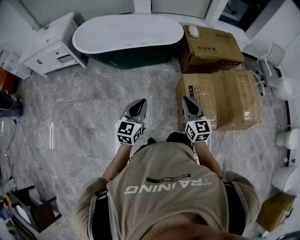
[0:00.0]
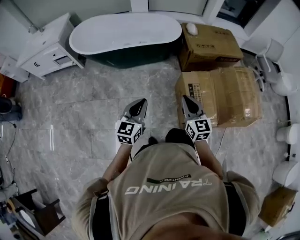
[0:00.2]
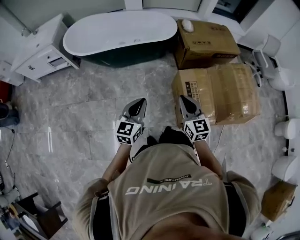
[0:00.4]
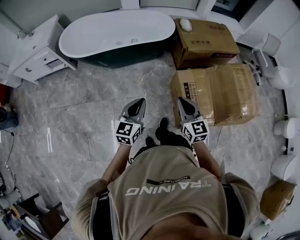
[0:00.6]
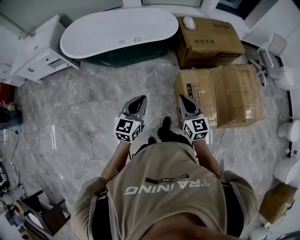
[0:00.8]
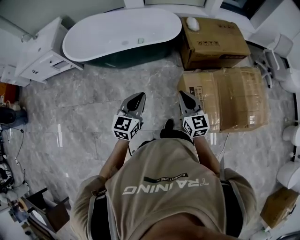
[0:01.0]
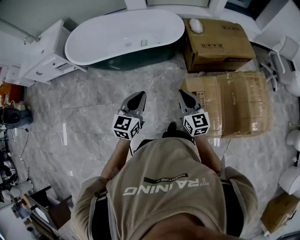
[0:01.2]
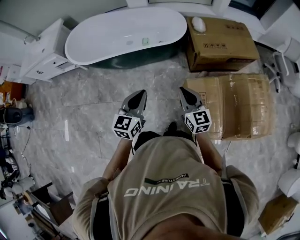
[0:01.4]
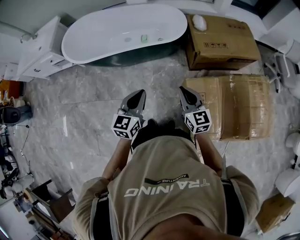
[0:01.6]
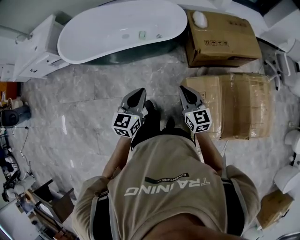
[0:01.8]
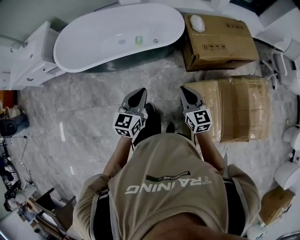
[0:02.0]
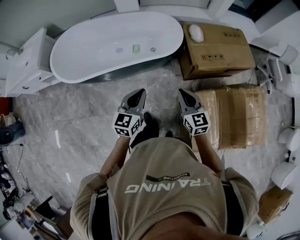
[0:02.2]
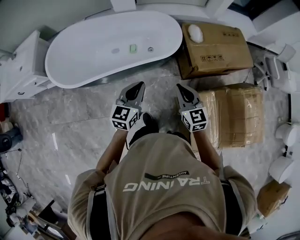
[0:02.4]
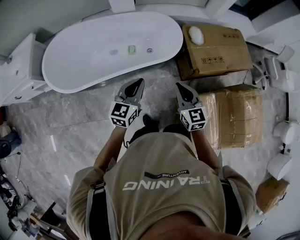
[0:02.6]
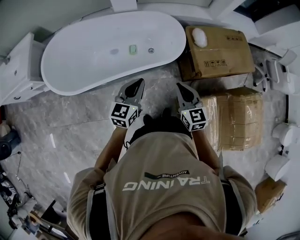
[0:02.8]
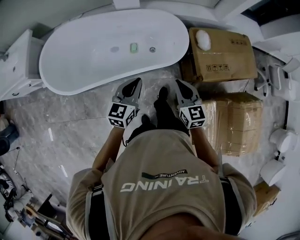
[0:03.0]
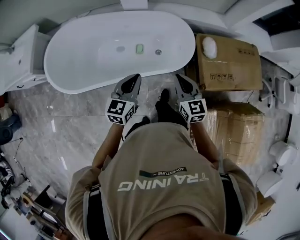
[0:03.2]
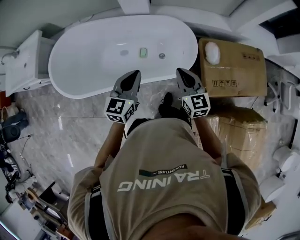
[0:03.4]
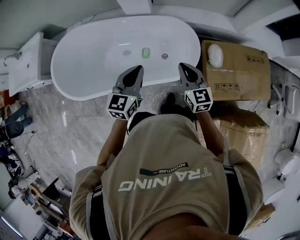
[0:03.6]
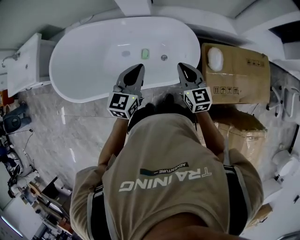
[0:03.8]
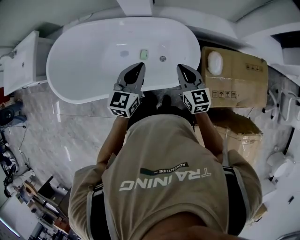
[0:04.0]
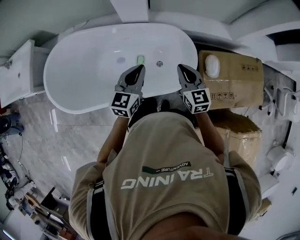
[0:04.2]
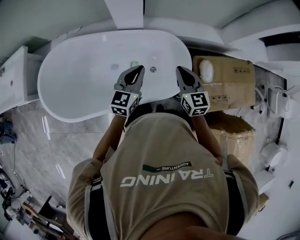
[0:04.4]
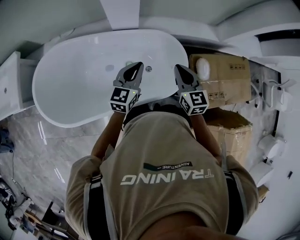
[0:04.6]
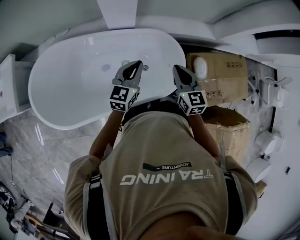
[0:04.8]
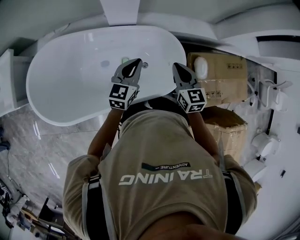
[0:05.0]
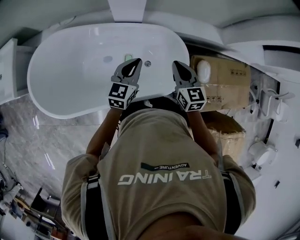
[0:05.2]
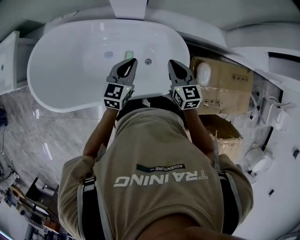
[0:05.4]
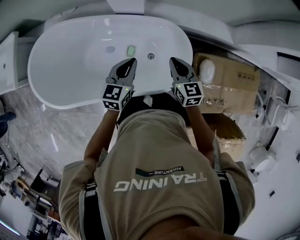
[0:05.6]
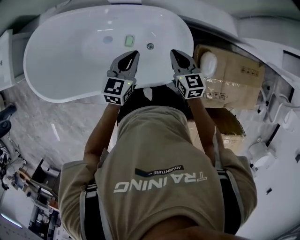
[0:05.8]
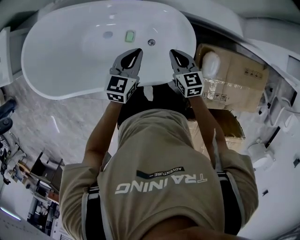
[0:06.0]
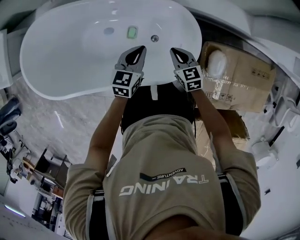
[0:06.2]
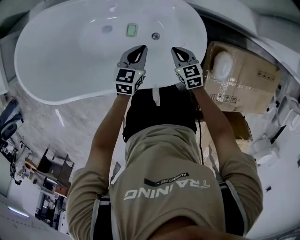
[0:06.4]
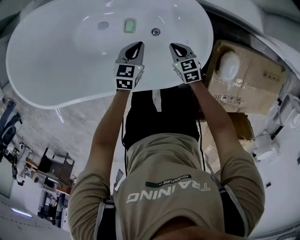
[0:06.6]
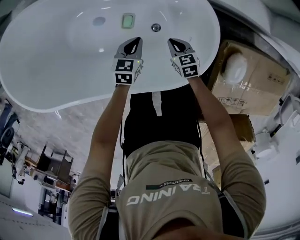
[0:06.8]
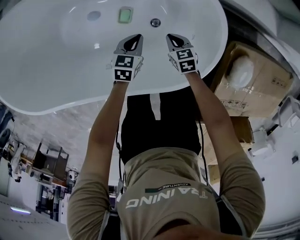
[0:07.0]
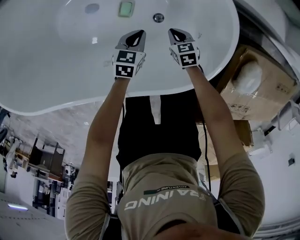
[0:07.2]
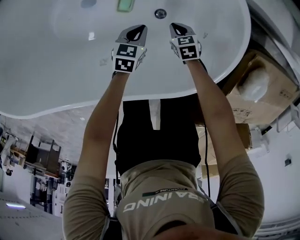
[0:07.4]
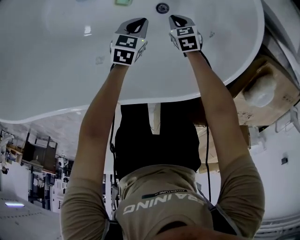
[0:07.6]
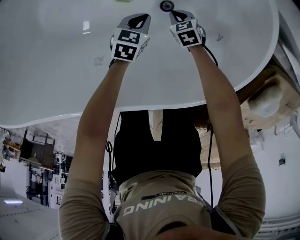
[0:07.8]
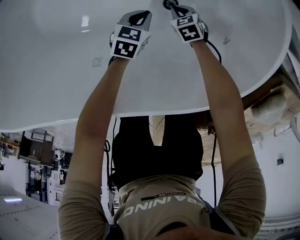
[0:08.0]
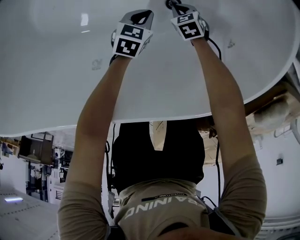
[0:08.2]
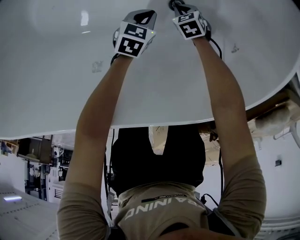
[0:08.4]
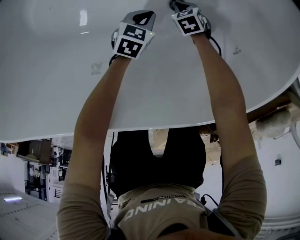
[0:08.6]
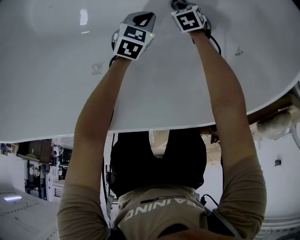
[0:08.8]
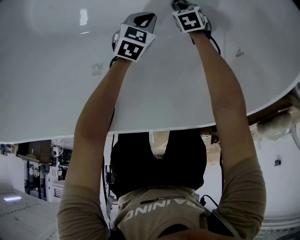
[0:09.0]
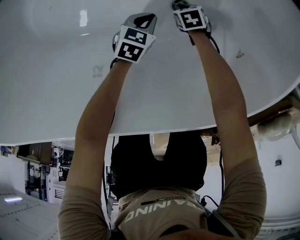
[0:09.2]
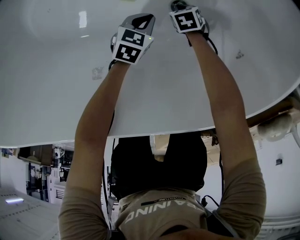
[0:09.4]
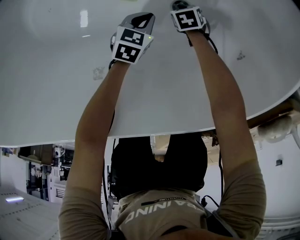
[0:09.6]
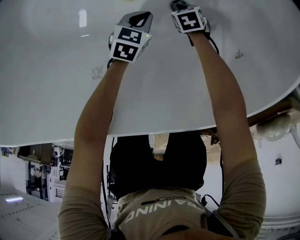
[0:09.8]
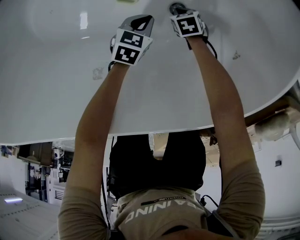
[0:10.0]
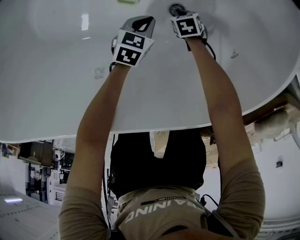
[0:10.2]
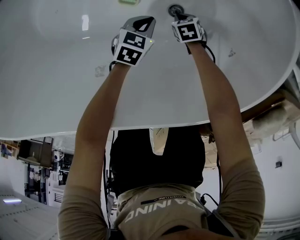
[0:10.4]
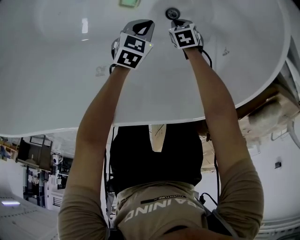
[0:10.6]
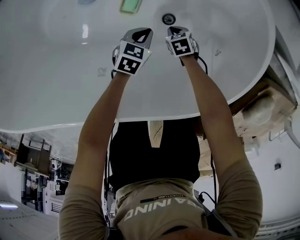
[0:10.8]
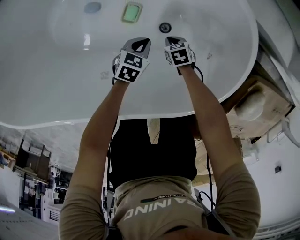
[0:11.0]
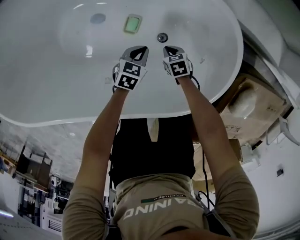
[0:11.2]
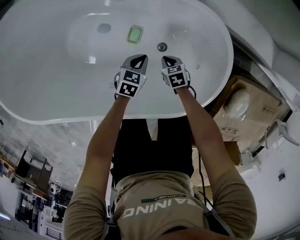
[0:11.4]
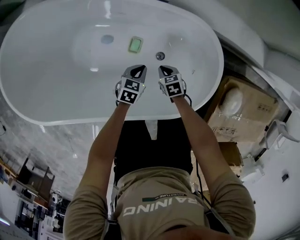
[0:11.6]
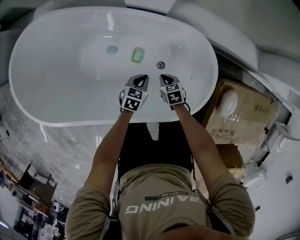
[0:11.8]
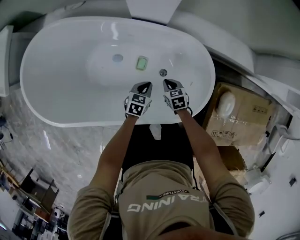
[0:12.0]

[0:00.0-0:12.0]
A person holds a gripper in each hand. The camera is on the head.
0:00.0 to 0:01.6: Both grippers move forward, approximately 25 cm.
0:01.6 to 0:03.0: Both grippers travel together forward, roughly 35 cm.
0:03.0 to 0:04.4: Both grippers travel together forward, approximately 30 cm.
0:04.4 to 0:06.0: The right gripper is displaced downward and forward by about 20 cm, and rotates approximately 20 degrees, while the left gripper heads downward, forward and to the right, covering some 15 cm.
0:06.0 to 0:07.6: The two grippers go about 50 cm downward. The right gripper points its fingers about 30 degrees further downward. The left gripper swivels some 30 degrees.
0:07.6 to 0:09.0: The two grippers go roughly 15 cm downward.
0:09.0 to 0:10.4: The grippers make only small movements.
0:10.4 to 0:12.0: Both grippers travel together upward, roughly 40 cm. The right gripper swivels approximately 30 degrees.

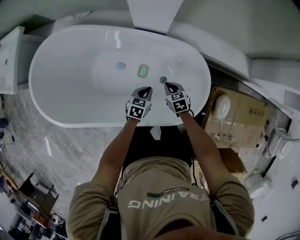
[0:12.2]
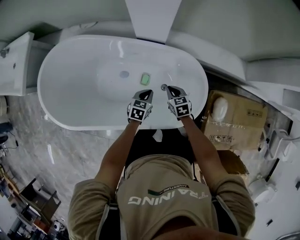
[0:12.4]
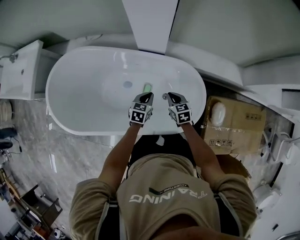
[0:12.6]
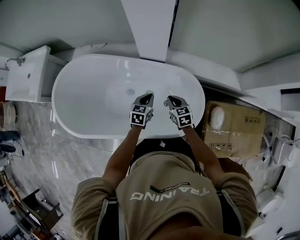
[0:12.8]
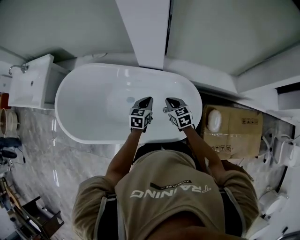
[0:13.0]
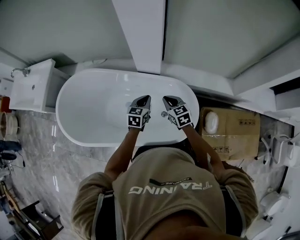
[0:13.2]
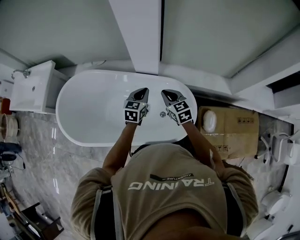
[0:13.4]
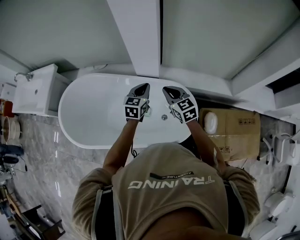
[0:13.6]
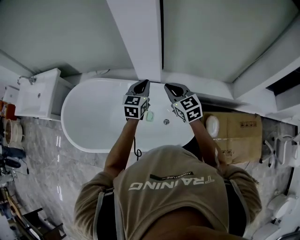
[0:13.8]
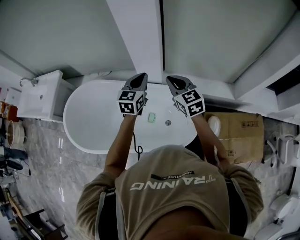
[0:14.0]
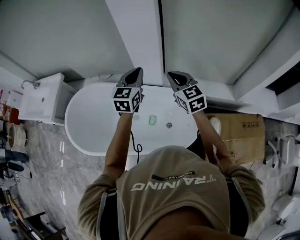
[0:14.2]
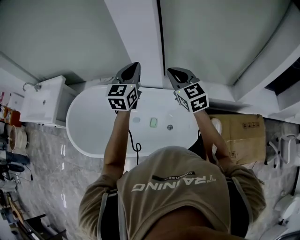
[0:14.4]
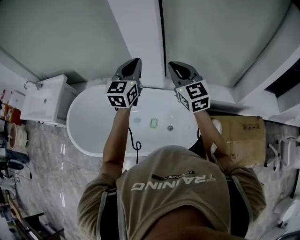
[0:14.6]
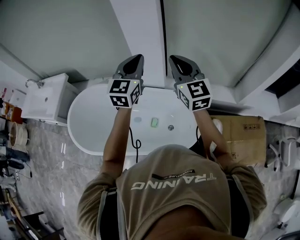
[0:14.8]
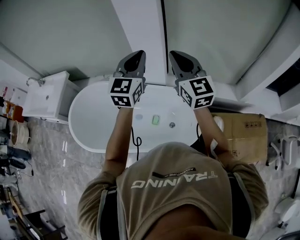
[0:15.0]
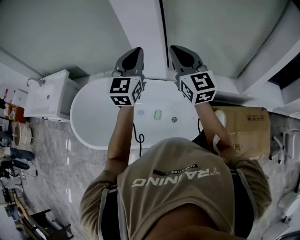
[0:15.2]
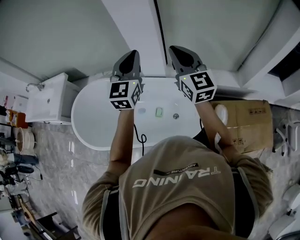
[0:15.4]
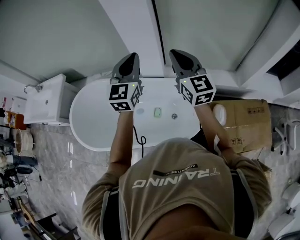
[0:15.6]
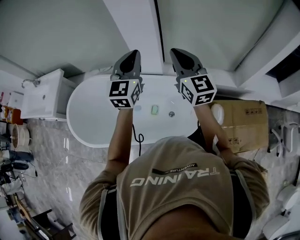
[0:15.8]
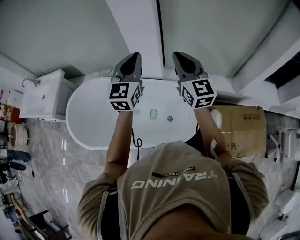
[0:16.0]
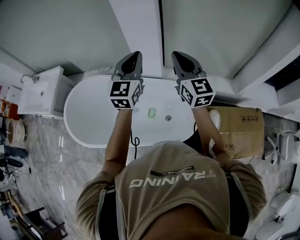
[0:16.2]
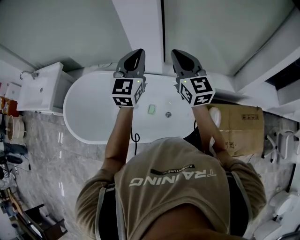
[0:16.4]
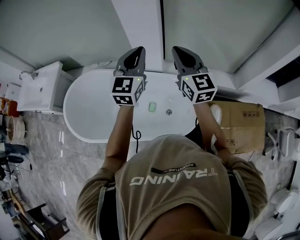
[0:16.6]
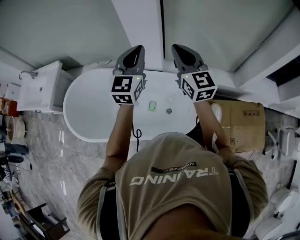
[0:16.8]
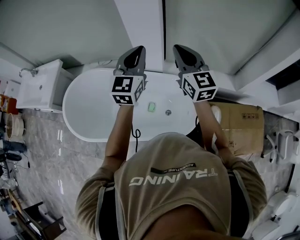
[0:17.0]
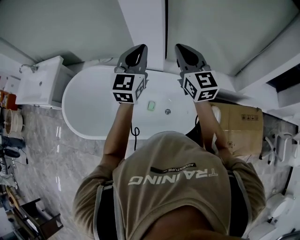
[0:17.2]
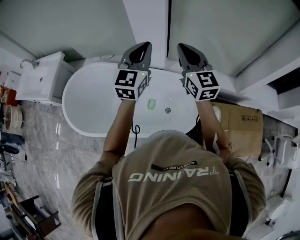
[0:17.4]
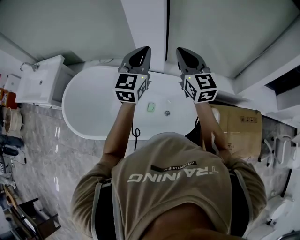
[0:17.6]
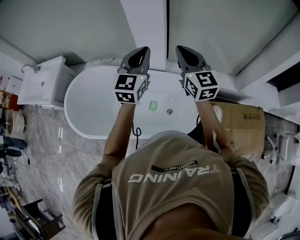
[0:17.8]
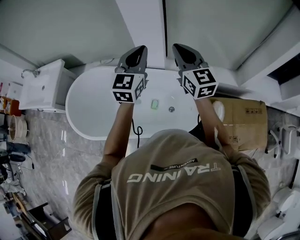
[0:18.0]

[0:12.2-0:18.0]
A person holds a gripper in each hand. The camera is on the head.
0:12.2 to 0:13.6: The two grippers go roughly 35 cm upward. The right gripper tips its fingers upward by about 30 degrees; the left gripper swivels about 30 degrees.
0:13.6 to 0:15.0: The grippers both shift upward by approximately 25 cm. The right gripper changes its angle by roughly 30 degrees. The left gripper swivels some 30 degrees.
0:15.0 to 0:18.0: The grippers move only a little.

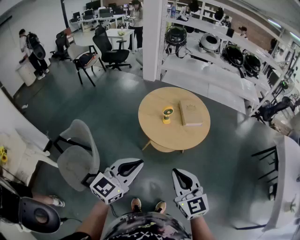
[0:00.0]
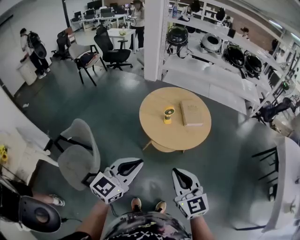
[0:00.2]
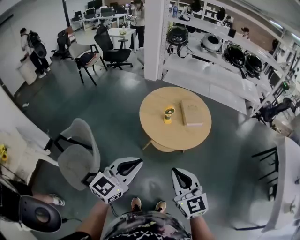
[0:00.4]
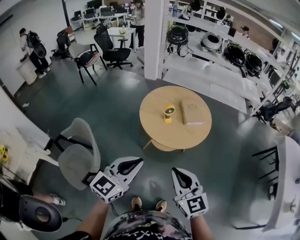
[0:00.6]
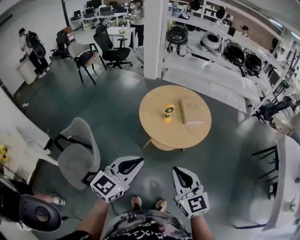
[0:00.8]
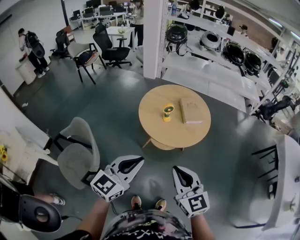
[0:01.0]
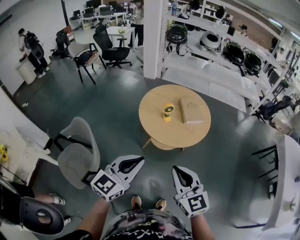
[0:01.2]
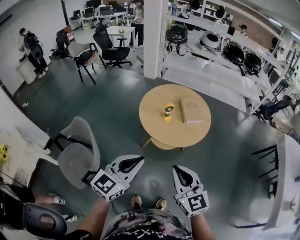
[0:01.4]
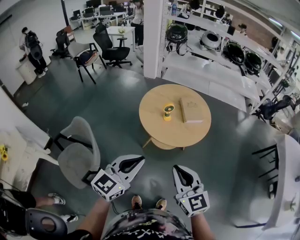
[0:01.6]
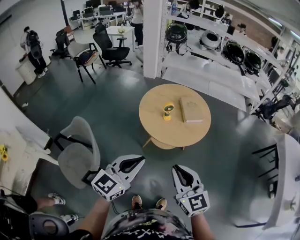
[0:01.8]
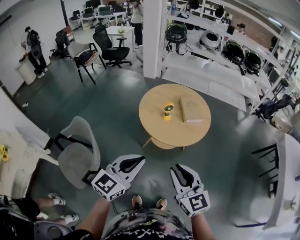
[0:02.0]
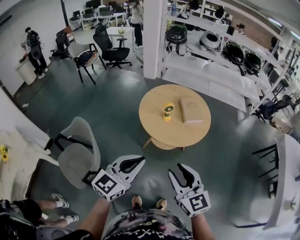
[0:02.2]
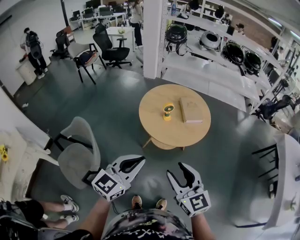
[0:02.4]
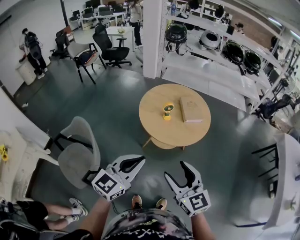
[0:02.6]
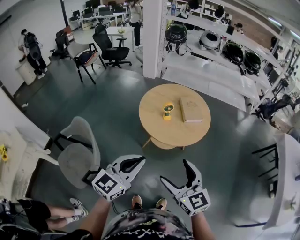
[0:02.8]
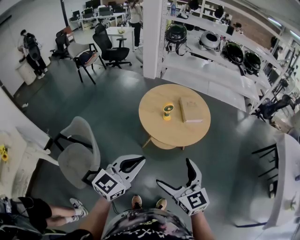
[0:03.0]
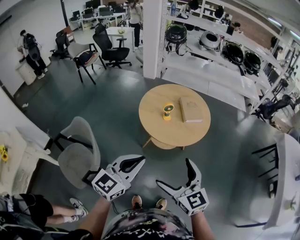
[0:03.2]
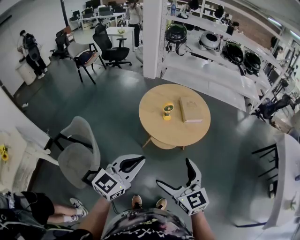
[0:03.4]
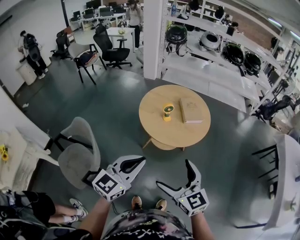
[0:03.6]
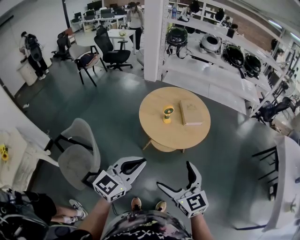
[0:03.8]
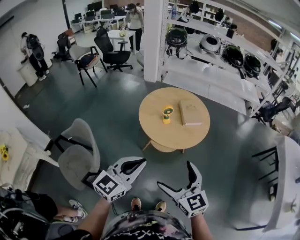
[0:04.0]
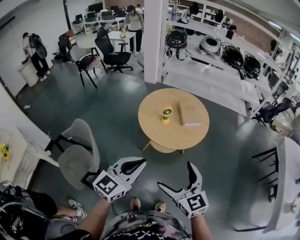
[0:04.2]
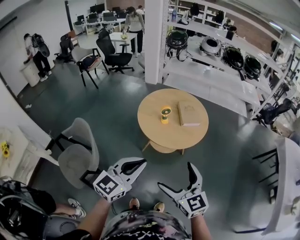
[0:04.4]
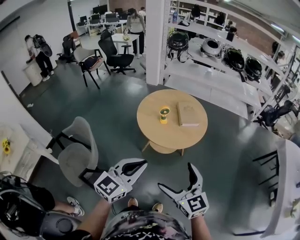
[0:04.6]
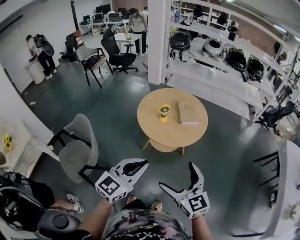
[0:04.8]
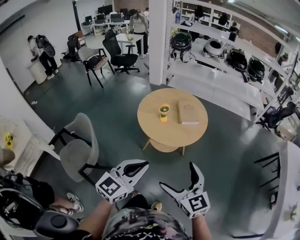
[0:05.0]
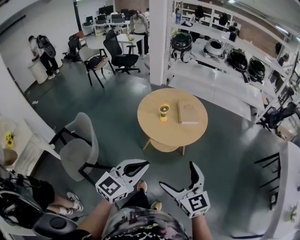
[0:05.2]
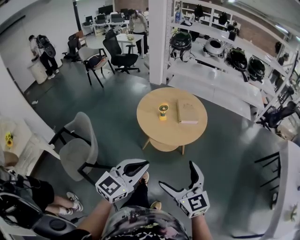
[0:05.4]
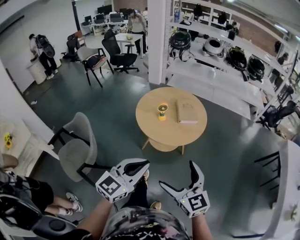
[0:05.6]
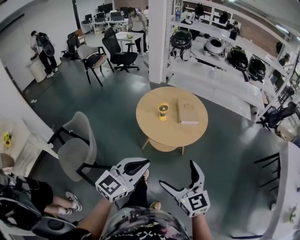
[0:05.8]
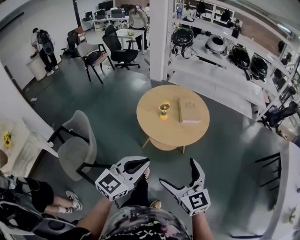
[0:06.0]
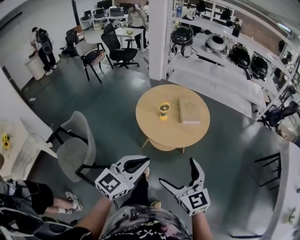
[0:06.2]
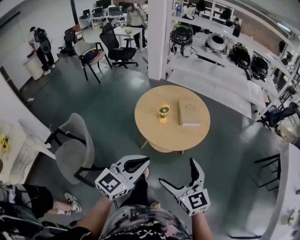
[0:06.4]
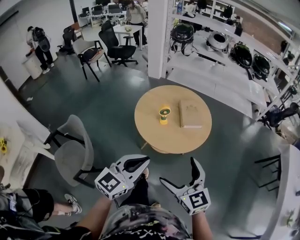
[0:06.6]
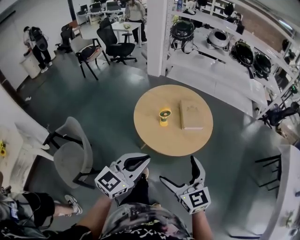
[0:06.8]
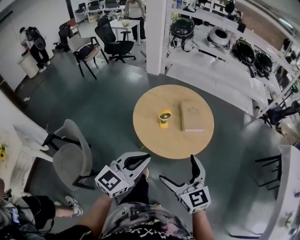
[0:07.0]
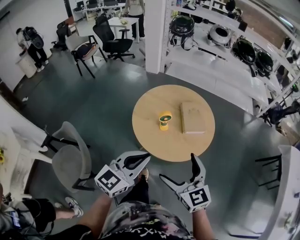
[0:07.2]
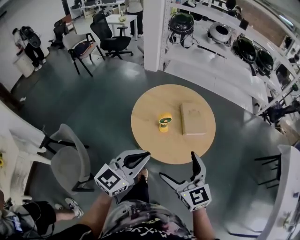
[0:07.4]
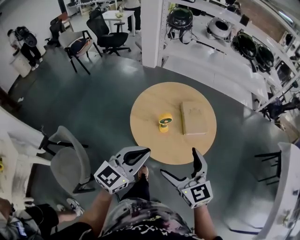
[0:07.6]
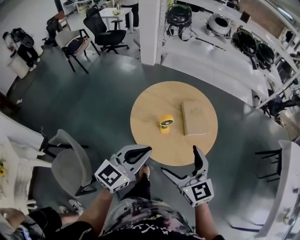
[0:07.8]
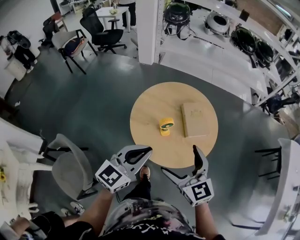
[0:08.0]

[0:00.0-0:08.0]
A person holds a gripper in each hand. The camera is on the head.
0:00.0 to 0:01.6: Both grippers stay put.
0:01.6 to 0:03.2: The right gripper opens up.
0:03.2 to 0:04.8: Both grippers move to the right, approximately 10 cm.
0:04.8 to 0:06.4: The grippers both shift forward by approximately 5 cm.
0:06.4 to 0:08.0: The grippers both shift forward by approximately 25 cm.
